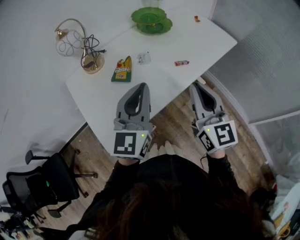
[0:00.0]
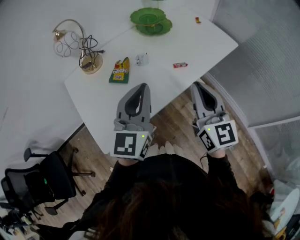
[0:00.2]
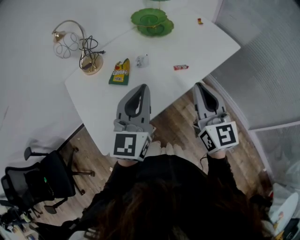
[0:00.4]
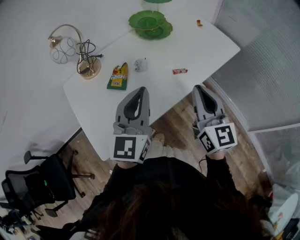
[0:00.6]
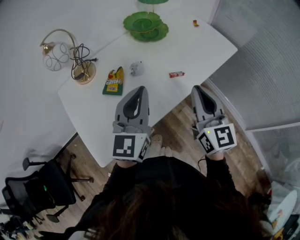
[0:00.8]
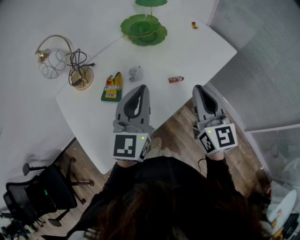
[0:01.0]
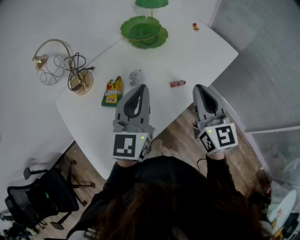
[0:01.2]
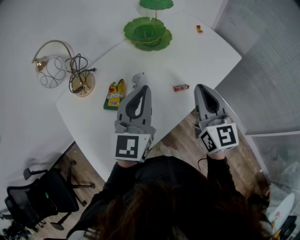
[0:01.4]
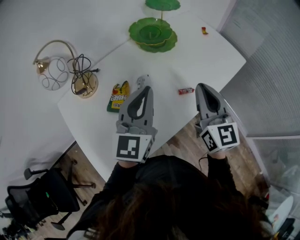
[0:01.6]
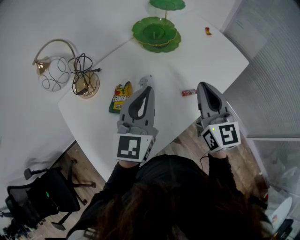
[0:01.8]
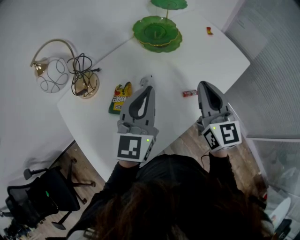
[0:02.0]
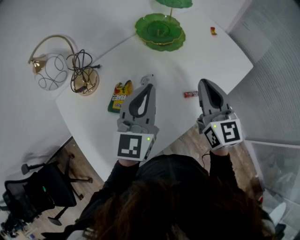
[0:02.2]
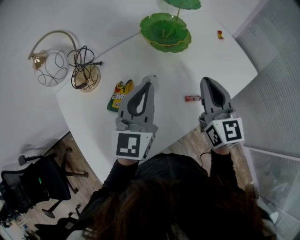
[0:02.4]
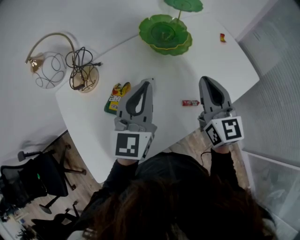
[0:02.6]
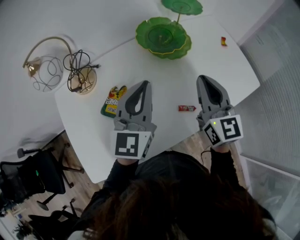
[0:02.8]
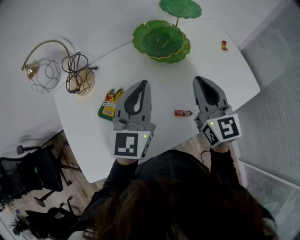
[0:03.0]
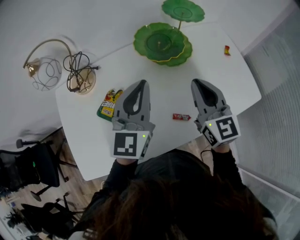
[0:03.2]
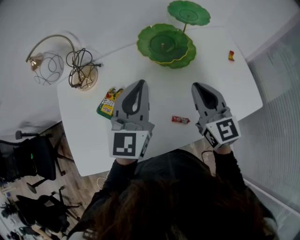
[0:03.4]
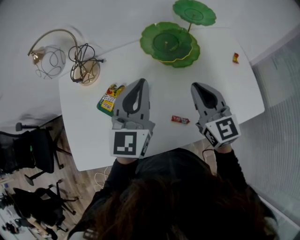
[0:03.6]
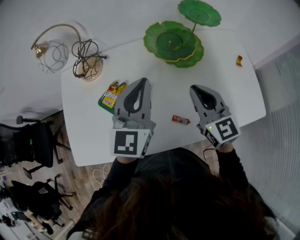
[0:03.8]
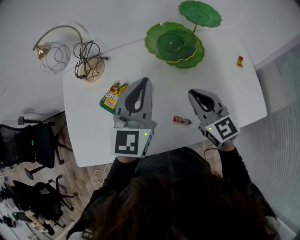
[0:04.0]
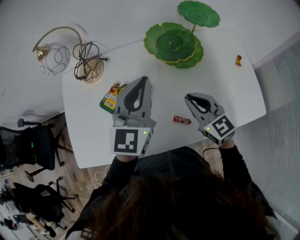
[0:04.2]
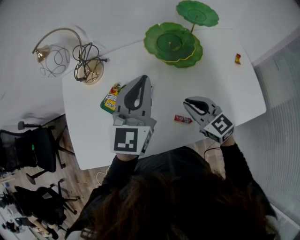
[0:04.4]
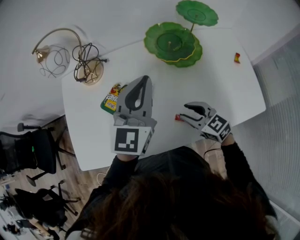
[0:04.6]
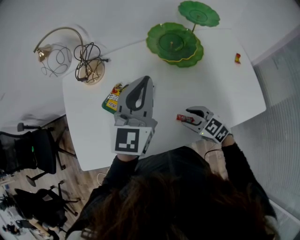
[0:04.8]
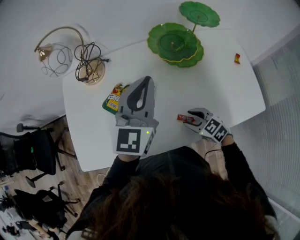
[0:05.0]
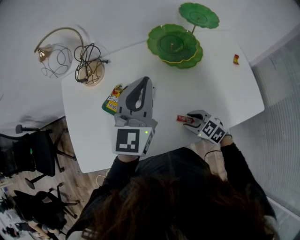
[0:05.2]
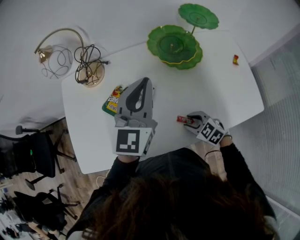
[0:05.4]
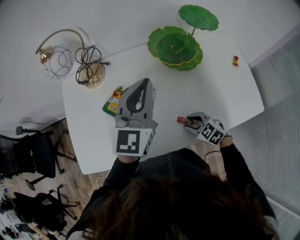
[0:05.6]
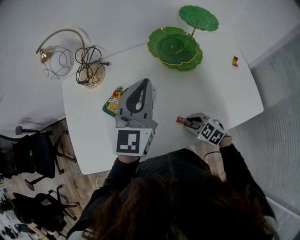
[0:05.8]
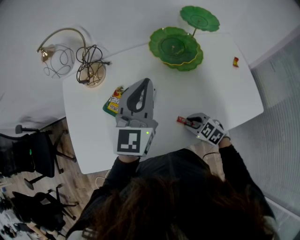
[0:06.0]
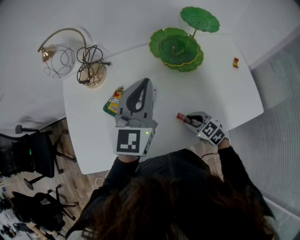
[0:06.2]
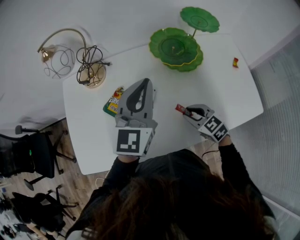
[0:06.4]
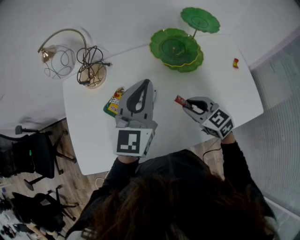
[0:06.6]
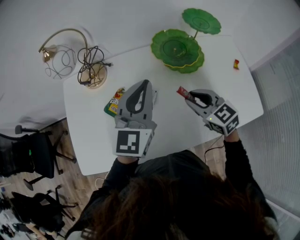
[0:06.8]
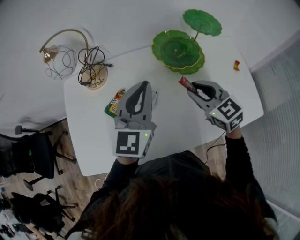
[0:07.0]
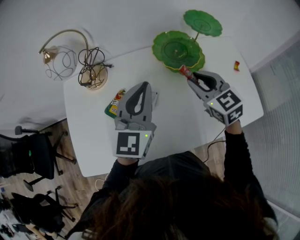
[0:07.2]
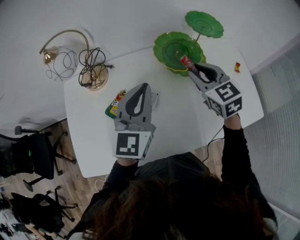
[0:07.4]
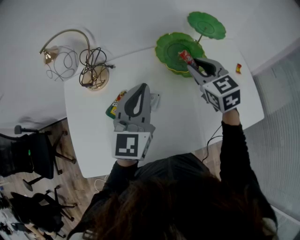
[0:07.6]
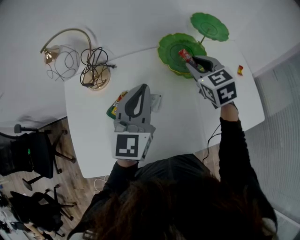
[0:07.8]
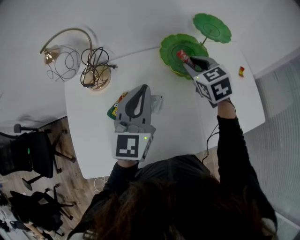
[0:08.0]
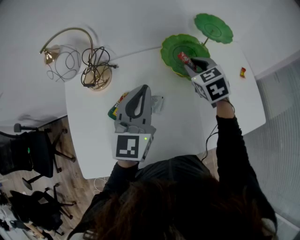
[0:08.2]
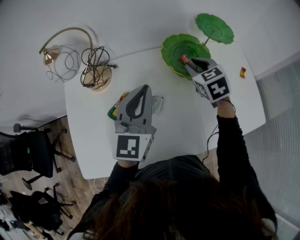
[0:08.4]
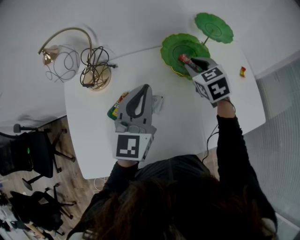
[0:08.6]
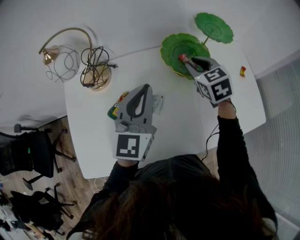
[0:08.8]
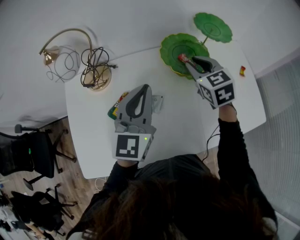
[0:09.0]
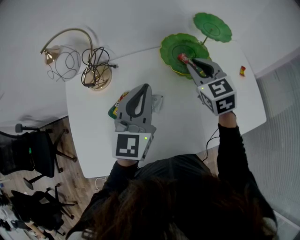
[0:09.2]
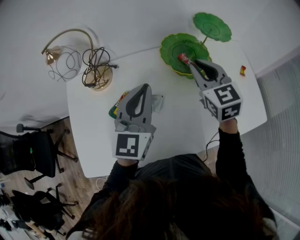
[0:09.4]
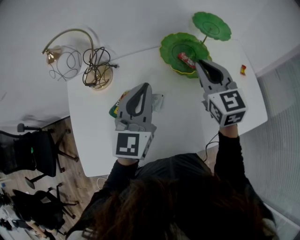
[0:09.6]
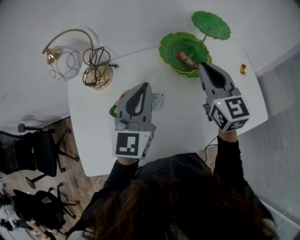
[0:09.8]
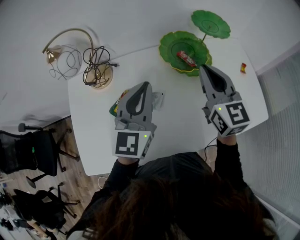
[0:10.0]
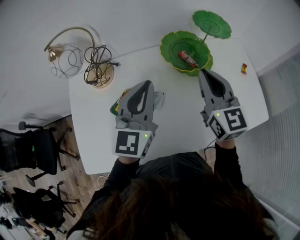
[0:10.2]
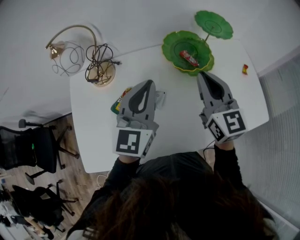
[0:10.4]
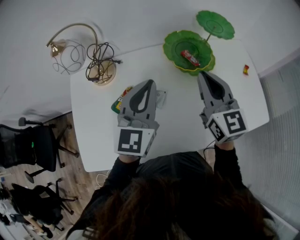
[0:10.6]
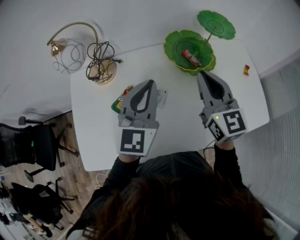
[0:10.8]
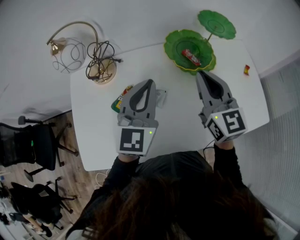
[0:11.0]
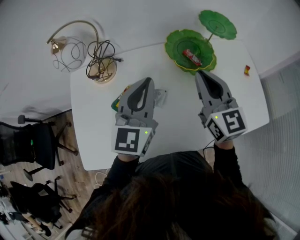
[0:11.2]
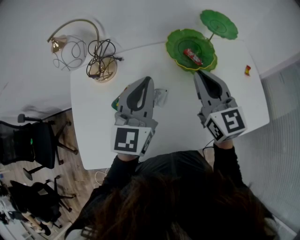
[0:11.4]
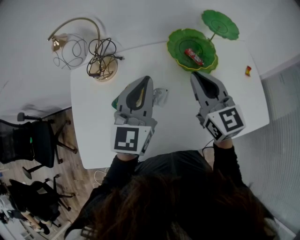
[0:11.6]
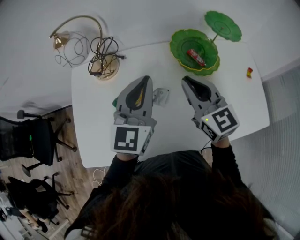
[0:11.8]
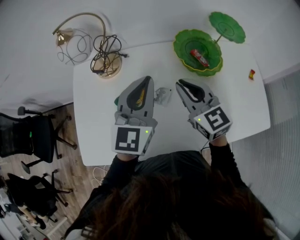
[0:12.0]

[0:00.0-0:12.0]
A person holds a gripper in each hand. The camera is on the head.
0:00.0 to 0:01.6: The two grippers go approximately 20 cm forward.
0:01.6 to 0:03.0: Both grippers travel together forward, some 15 cm.
0:03.0 to 0:04.4: The right gripper shifts approximately 10 cm downward, and swivels roughly 40 degrees.
0:04.4 to 0:06.0: The right gripper is displaced downward and backward by approximately 15 cm, and points its fingers about 30 degrees further downward.
0:06.0 to 0:07.6: The right gripper shifts some 35 cm upward and forward, and changes its angle by about 40 degrees.
0:09.0 to 0:10.4: The right gripper moves backward and upward, about 10 cm, and swivels approximately 30 degrees.
0:10.4 to 0:12.0: The right gripper heads to the left and downward, covering roughly 10 cm, and turns by approximately 20 degrees.

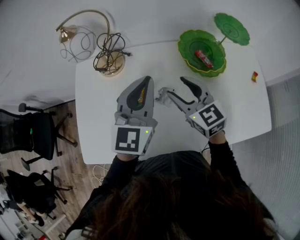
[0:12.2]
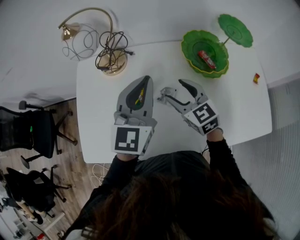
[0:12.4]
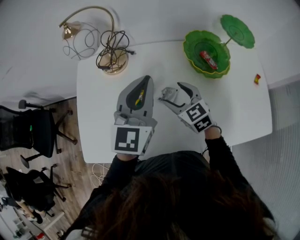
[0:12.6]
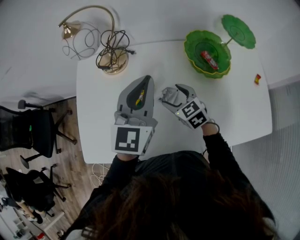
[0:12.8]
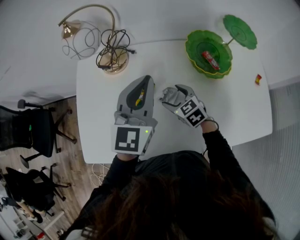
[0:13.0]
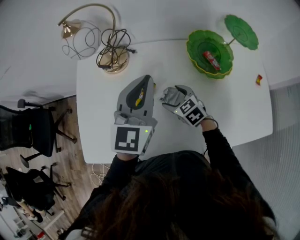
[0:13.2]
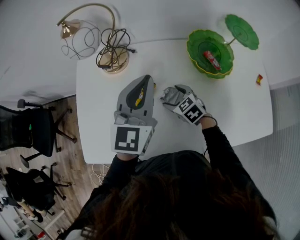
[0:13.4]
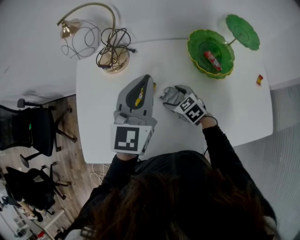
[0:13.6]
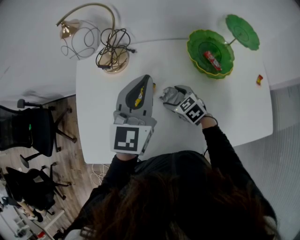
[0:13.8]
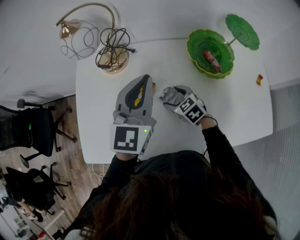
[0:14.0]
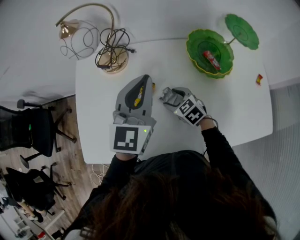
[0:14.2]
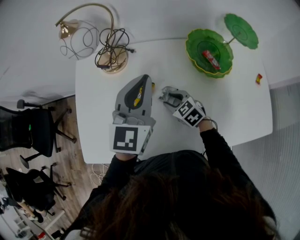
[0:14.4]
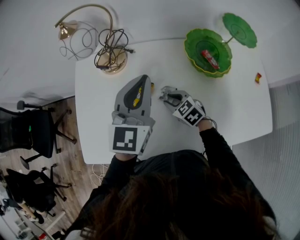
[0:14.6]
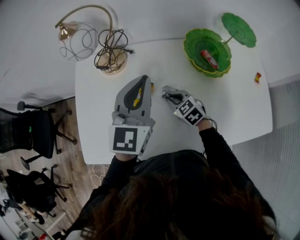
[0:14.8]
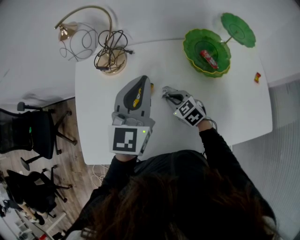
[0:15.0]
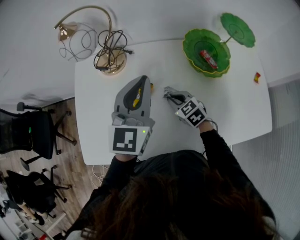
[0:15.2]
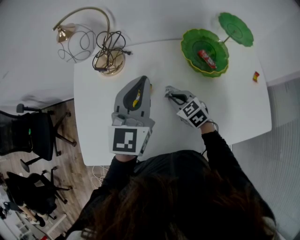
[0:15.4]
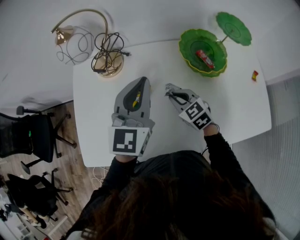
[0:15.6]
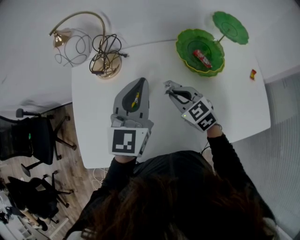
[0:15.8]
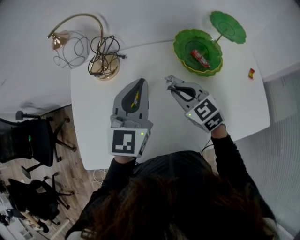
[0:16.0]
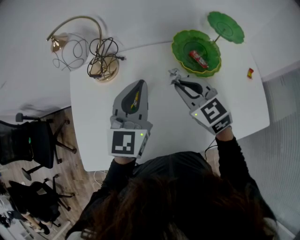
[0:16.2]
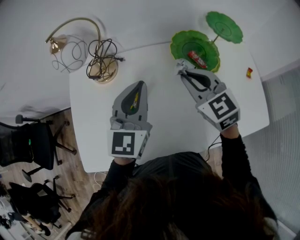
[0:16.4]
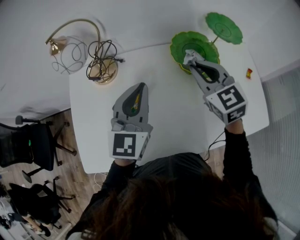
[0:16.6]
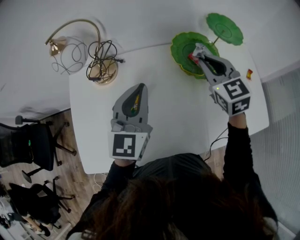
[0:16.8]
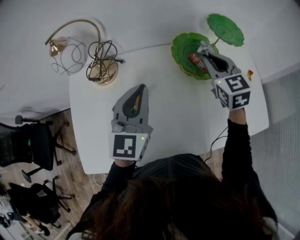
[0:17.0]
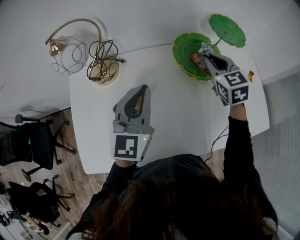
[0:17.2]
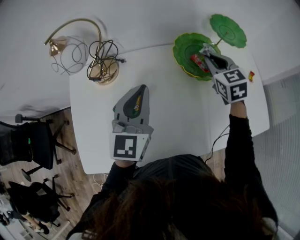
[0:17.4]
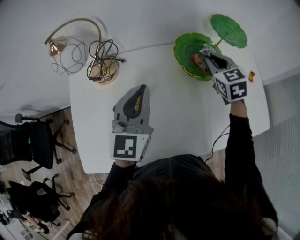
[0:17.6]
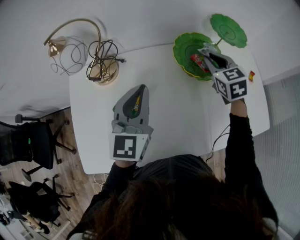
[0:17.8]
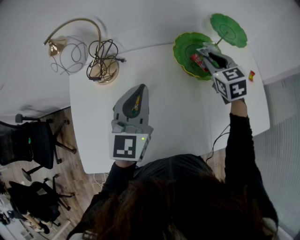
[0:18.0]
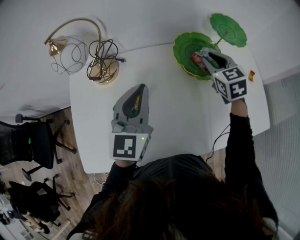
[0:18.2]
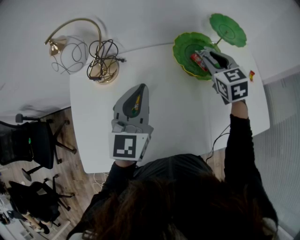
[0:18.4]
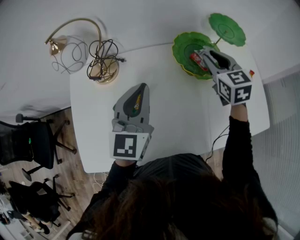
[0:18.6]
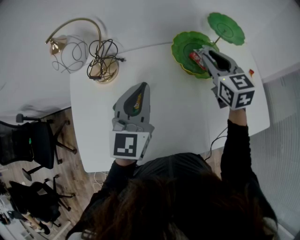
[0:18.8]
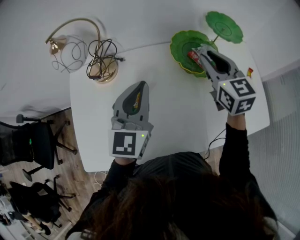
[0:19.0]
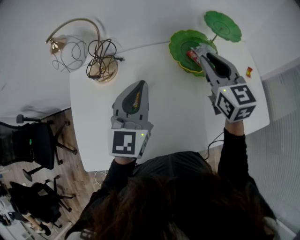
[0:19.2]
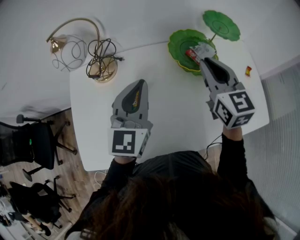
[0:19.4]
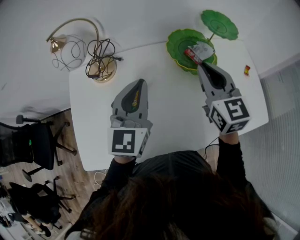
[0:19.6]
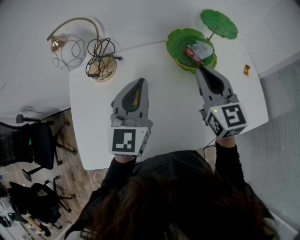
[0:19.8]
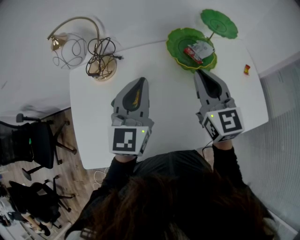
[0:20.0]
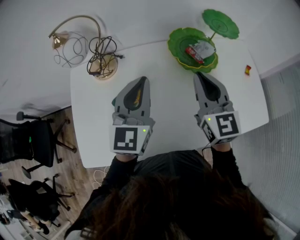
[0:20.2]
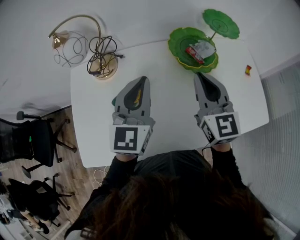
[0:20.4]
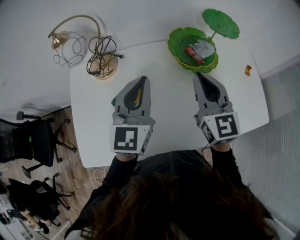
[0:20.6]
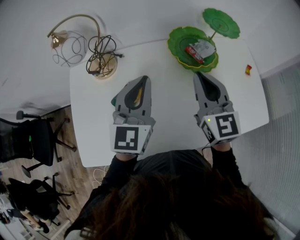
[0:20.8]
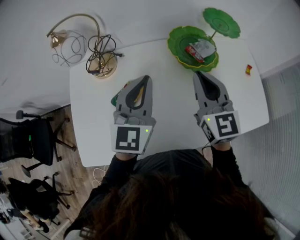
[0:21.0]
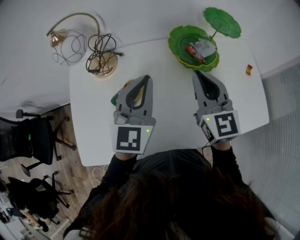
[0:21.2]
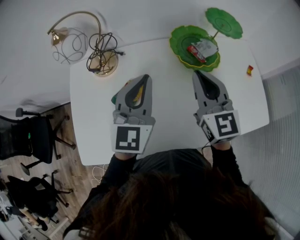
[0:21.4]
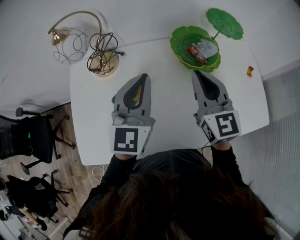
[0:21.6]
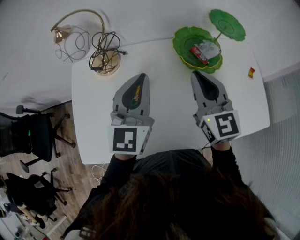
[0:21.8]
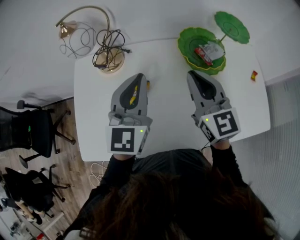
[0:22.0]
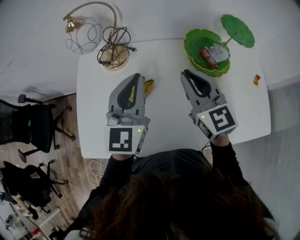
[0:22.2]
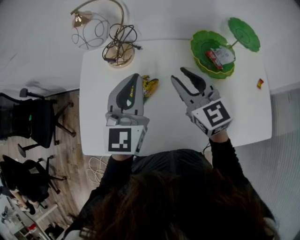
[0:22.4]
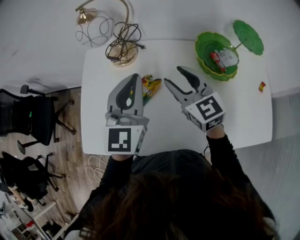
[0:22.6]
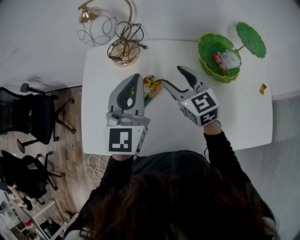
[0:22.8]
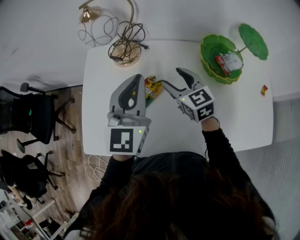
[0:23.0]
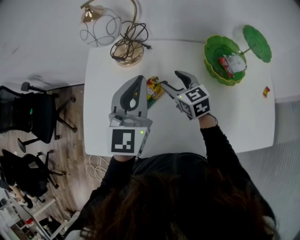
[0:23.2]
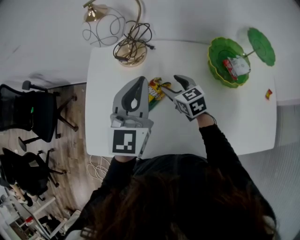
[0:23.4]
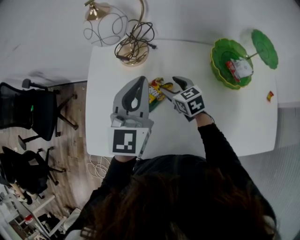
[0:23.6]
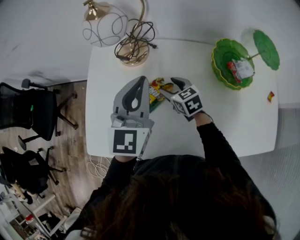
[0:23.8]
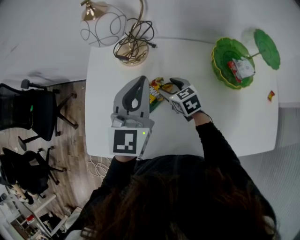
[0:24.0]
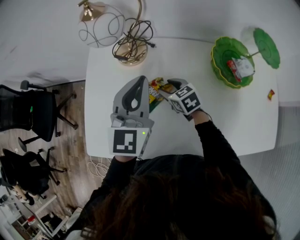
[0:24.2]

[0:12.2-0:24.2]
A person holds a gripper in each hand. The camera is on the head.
0:12.2 to 0:13.8: The right gripper shifts about 20 cm downward, and swivels roughly 30 degrees.
0:13.8 to 0:15.2: The right gripper closes its fingers.
0:15.2 to 0:16.6: The right gripper goes approximately 25 cm upward and to the right, and changes its angle by some 30 degrees.
0:16.6 to 0:18.2: The right gripper shifts about 10 cm forward, to the right and downward.
0:18.2 to 0:19.8: The right gripper goes some 15 cm backward and upward, and swivels approximately 30 degrees.
0:19.8 to 0:21.2: The grippers make only small movements.
0:21.2 to 0:22.6: The left gripper shifts roughly 10 cm to the left, while the right gripper heads to the left and downward, covering approximately 15 cm, changes its angle by about 30 degrees, and opens.
0:22.6 to 0:24.2: The left gripper moves approximately 5 cm. The right gripper shifts roughly 20 cm downward, and turns by some 30 degrees.
